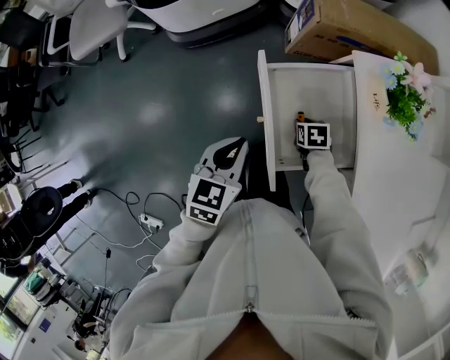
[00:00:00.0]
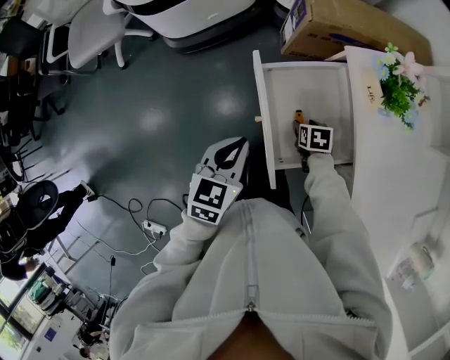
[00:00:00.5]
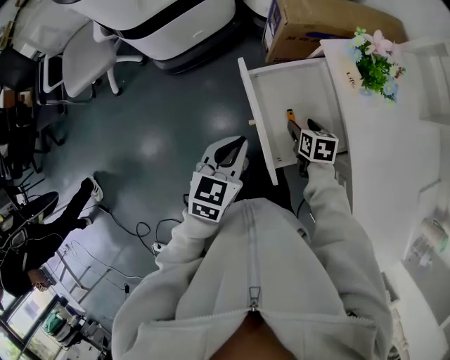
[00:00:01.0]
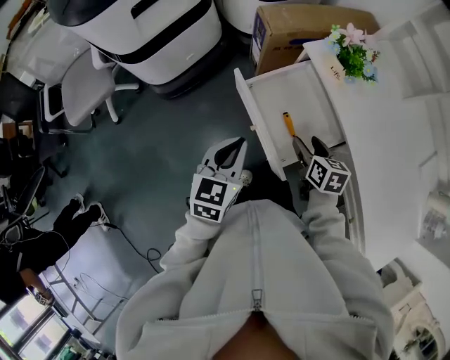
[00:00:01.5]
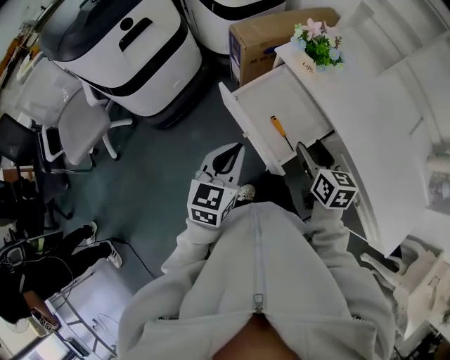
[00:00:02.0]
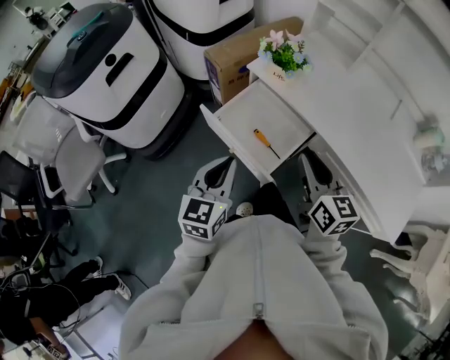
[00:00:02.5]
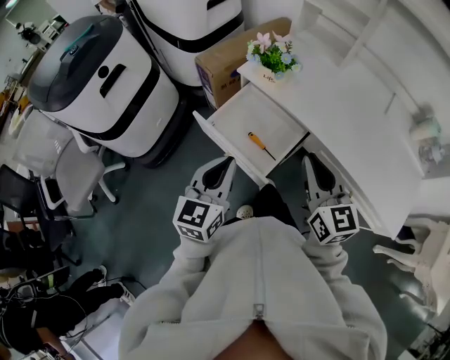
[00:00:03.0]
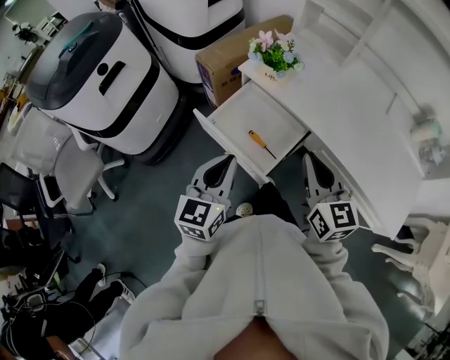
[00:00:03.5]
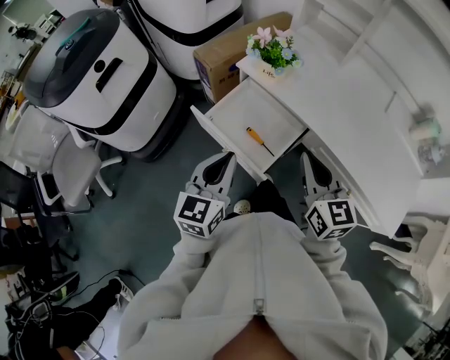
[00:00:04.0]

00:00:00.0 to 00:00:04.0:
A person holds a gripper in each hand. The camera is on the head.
00:00:00.0 to 00:00:02.0: The right gripper travels upward by approximately 30 cm, tips its fingers upward by roughly 40 degrees, and opens its fingers; the left gripper shifts roughly 10 cm upward, and changes its angle by roughly 30 degrees.
00:00:02.0 to 00:00:04.0: The left gripper moves about 5 cm. Meanwhile the right gripper travels upward by approximately 10 cm, turns by some 20 degrees, and closes up.

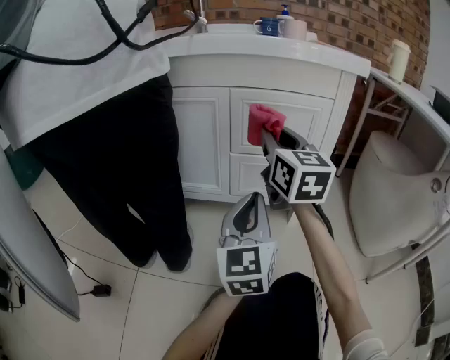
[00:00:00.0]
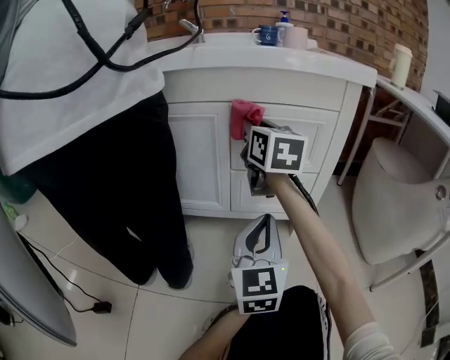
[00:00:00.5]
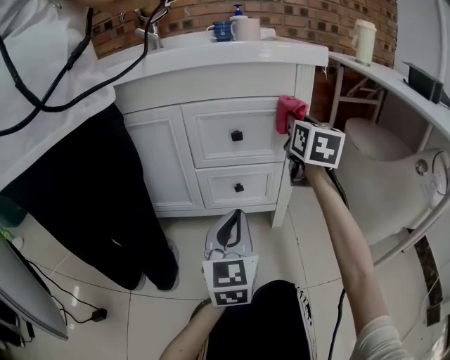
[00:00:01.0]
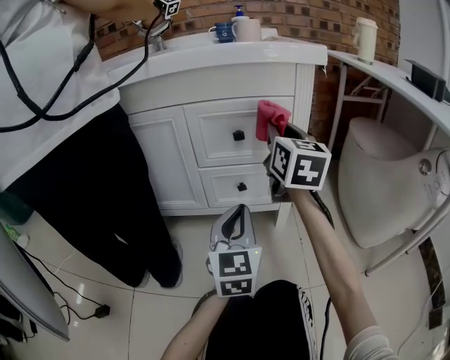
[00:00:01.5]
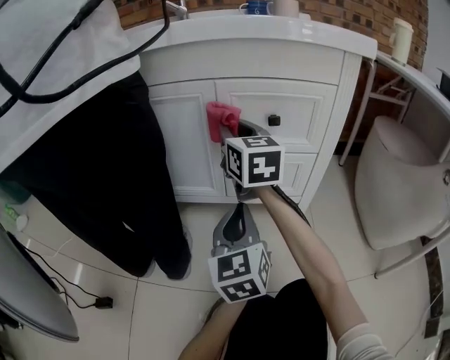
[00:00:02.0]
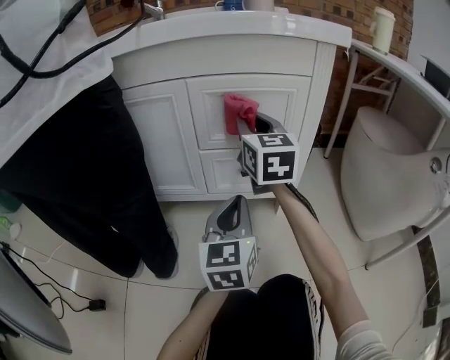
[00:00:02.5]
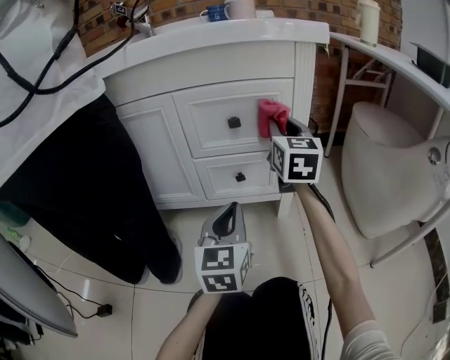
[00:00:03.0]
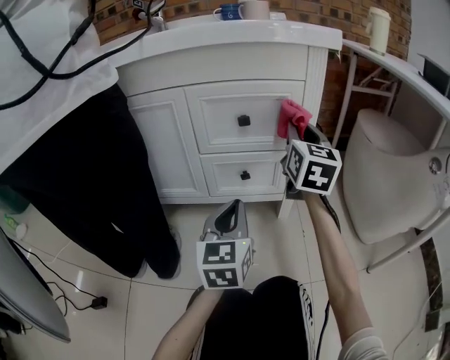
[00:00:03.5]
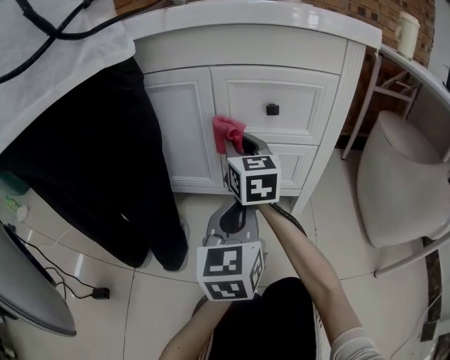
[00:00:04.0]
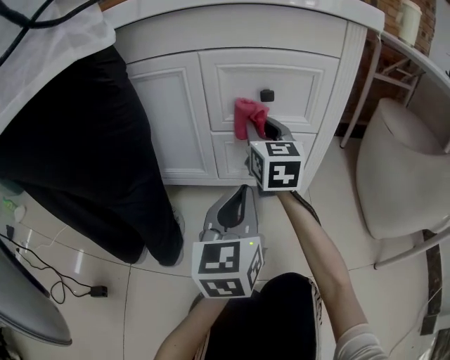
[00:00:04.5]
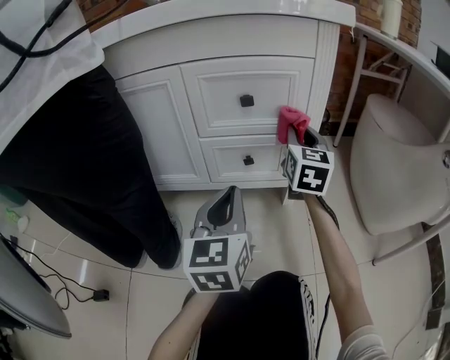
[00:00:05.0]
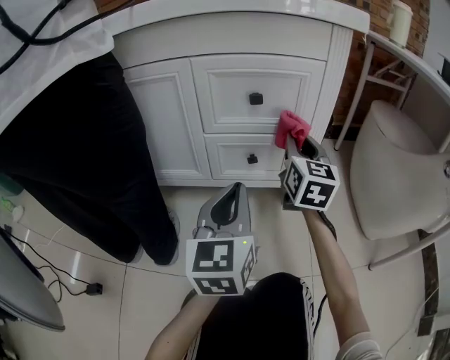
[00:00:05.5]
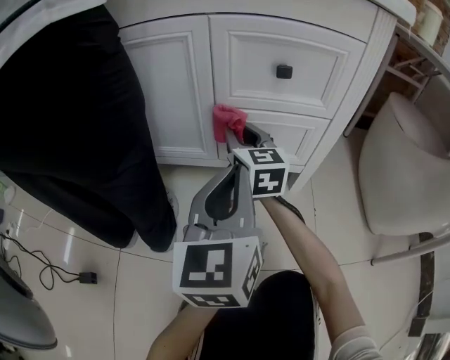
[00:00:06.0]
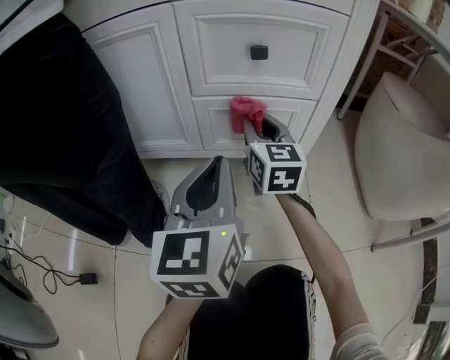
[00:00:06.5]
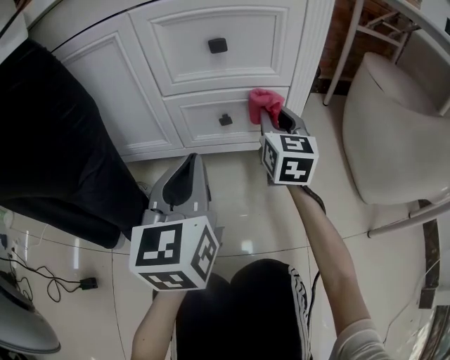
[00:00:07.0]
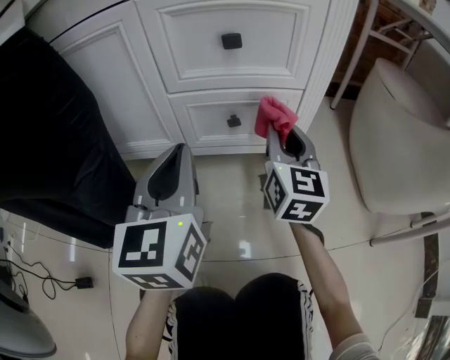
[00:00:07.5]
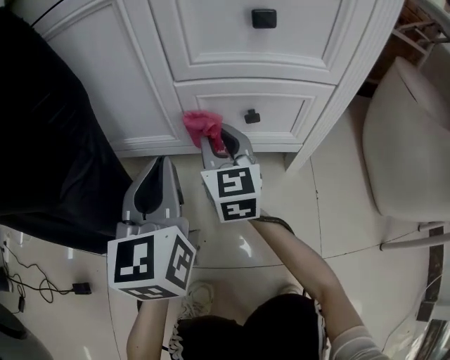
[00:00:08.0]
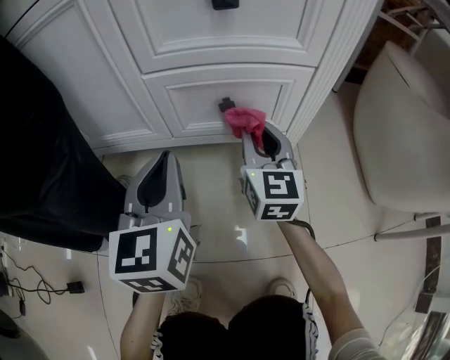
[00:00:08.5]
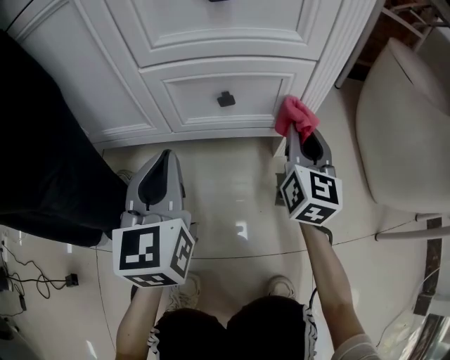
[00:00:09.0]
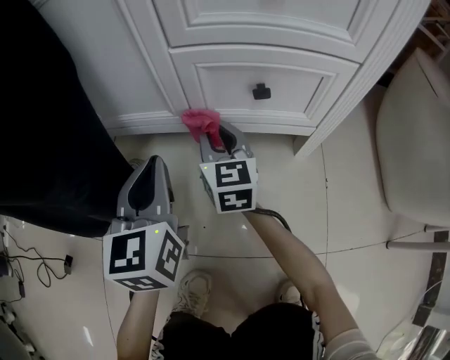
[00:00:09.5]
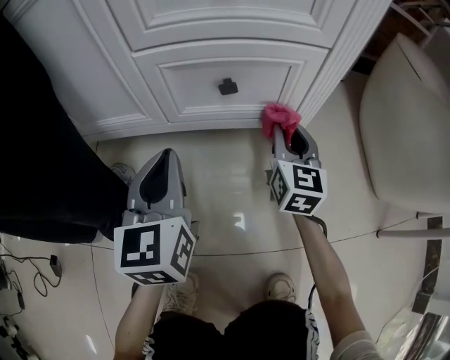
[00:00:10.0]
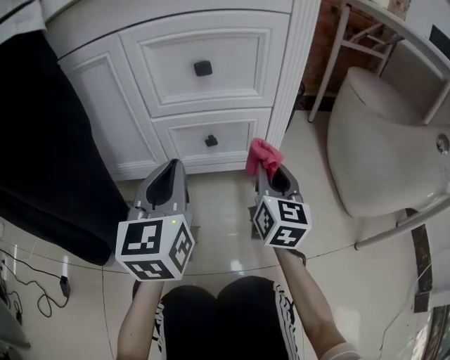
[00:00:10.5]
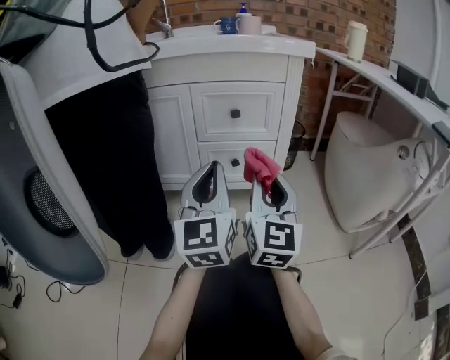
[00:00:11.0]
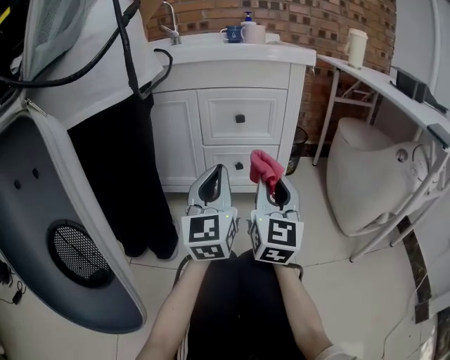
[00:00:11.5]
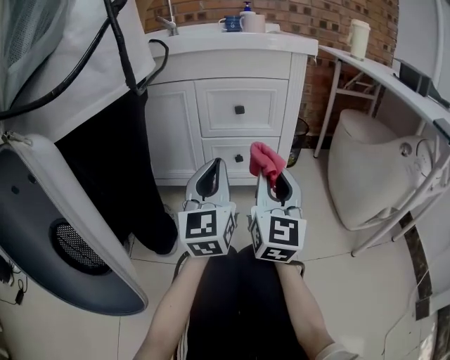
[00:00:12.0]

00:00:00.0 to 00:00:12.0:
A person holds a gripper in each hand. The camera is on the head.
00:00:00.0 to 00:00:02.0: The right gripper swings left and right, approximately 25 cm each way, with 2 reversals, while the left gripper goes about 5 cm downward, and goes to the right and returns, about 5 cm each way.
00:00:02.0 to 00:00:04.0: The right gripper heads downward, covering some 5 cm, and travels to the right and back again, approximately 25 cm each way.
00:00:04.0 to 00:00:06.0: The right gripper is displaced downward by approximately 10 cm, and moves some 25 cm to the right and comes back.
00:00:06.0 to 00:00:08.0: The left gripper is displaced downward, forward and to the left by some 15 cm. Meanwhile the right gripper goes about 10 cm downward, and reaches some 20 cm to the right, then returns.
00:00:08.0 to 00:00:10.0: The right gripper goes left and right, roughly 25 cm each way, reversing 2 times, and swivels approximately 20 degrees. The left gripper shifts roughly 10 cm downward.
00:00:10.0 to 00:00:12.0: Both grippers move upward and backward, about 35 cm. The right gripper rotates about 30 degrees, while the left gripper swivels roughly 30 degrees.

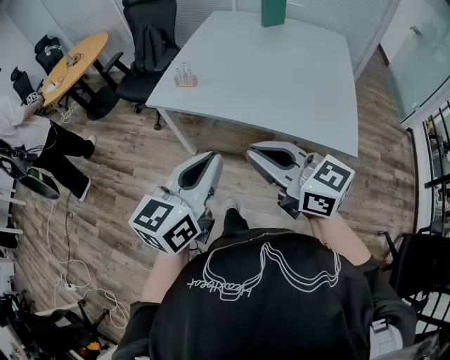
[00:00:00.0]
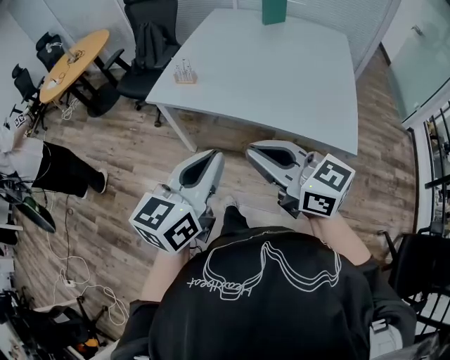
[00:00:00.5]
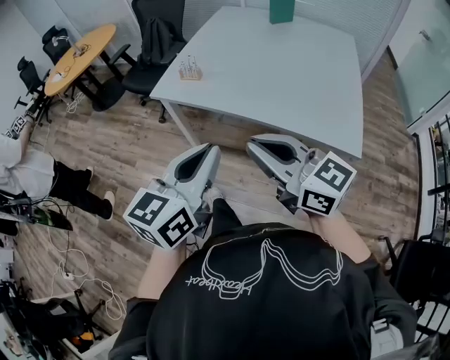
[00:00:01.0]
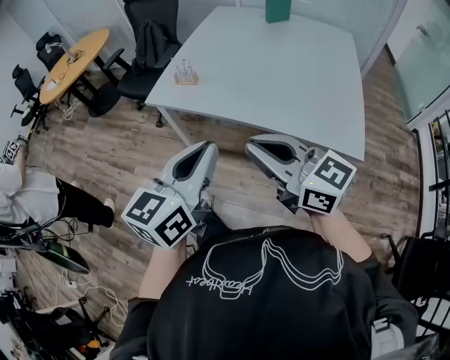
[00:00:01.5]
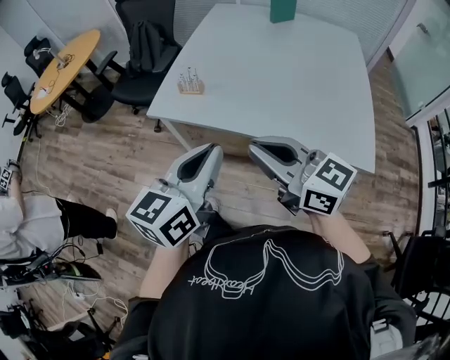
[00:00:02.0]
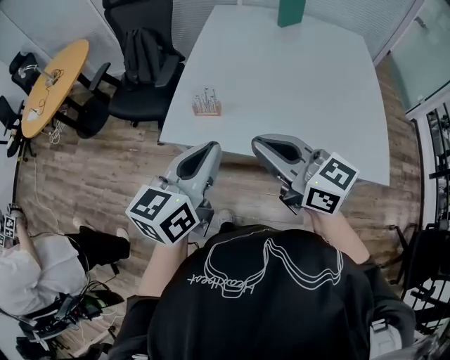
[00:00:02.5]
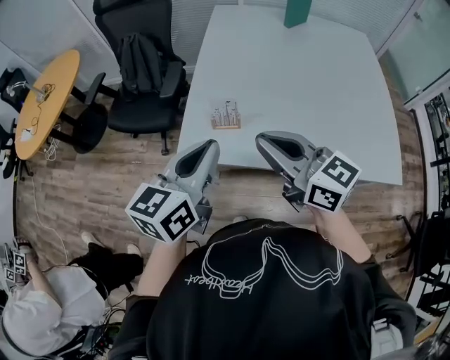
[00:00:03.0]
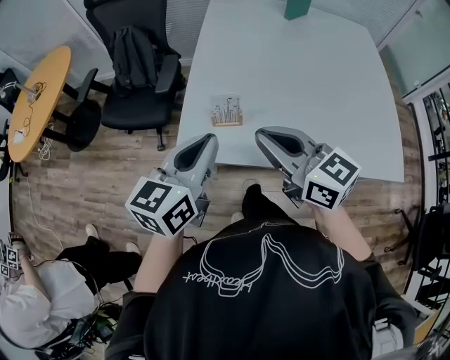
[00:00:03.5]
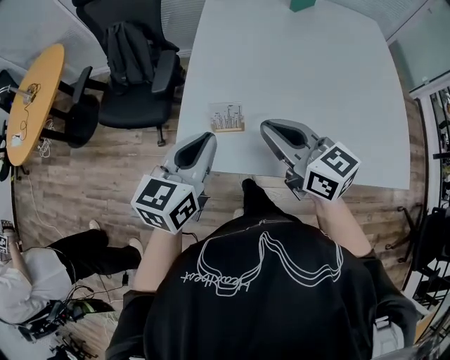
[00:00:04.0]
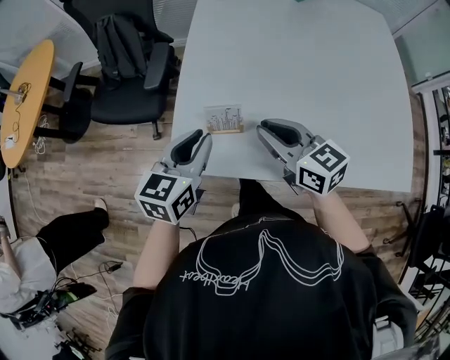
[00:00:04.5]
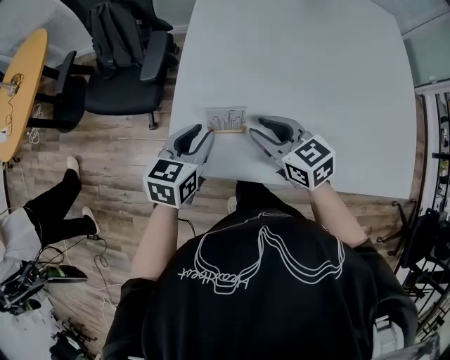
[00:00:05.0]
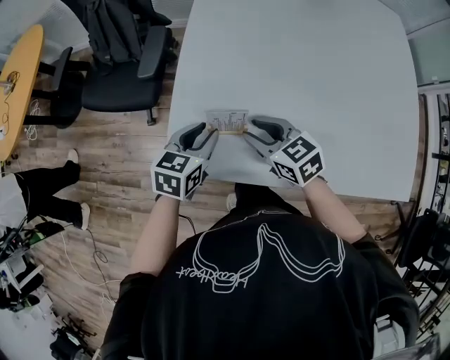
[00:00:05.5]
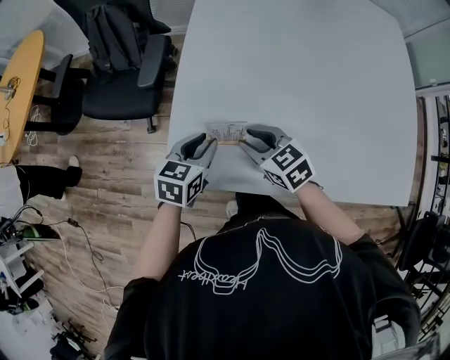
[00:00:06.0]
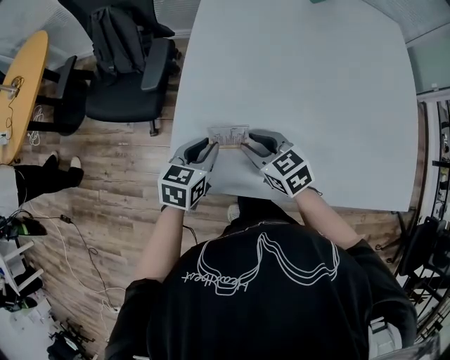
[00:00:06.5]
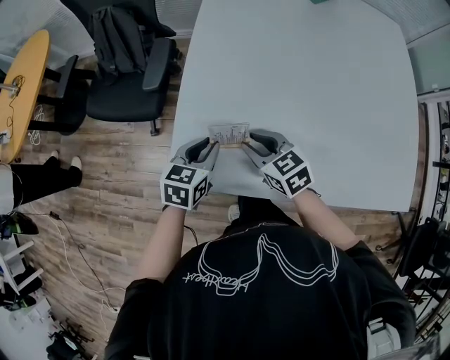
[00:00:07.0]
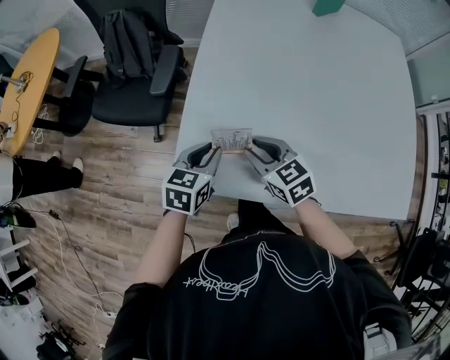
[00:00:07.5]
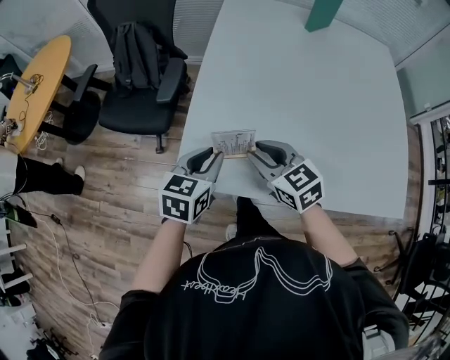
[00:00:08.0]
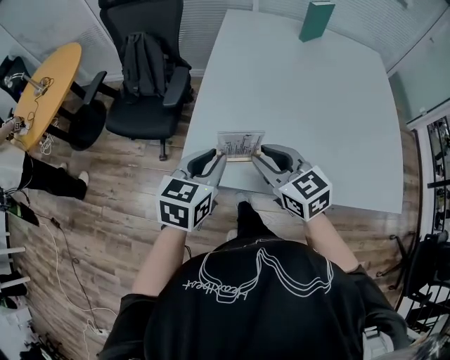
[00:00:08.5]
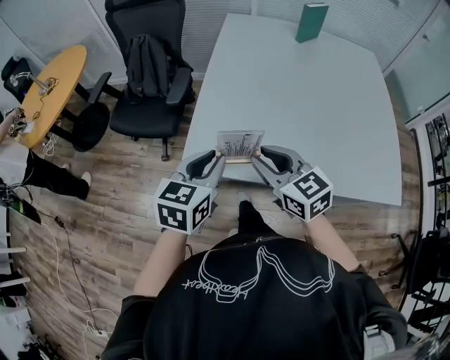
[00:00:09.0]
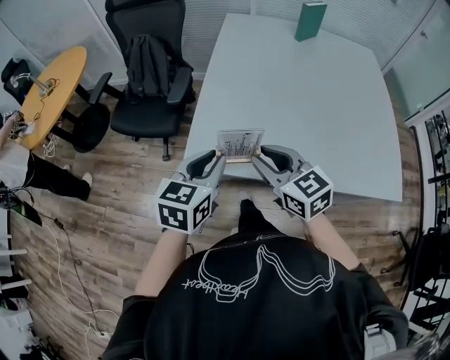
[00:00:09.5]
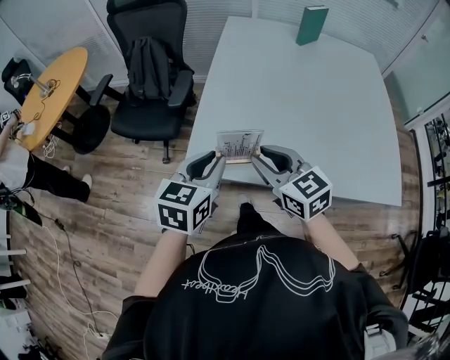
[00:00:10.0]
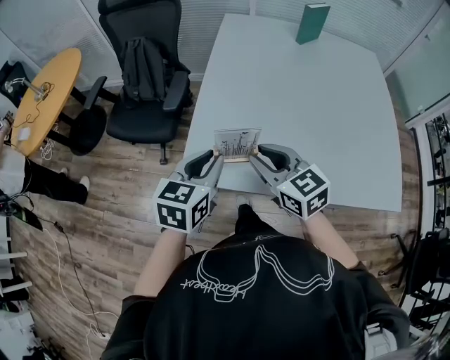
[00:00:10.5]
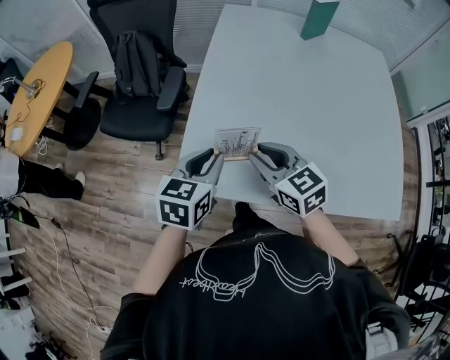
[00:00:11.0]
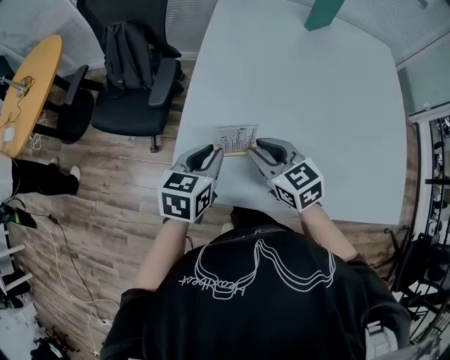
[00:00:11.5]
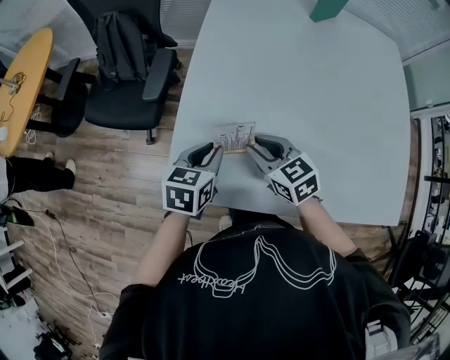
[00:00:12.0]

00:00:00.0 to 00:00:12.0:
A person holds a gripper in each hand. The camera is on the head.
00:00:00.0 to 00:00:02.0: Both grippers travel together forward, approximately 15 cm.
00:00:02.0 to 00:00:04.0: The left gripper moves forward and to the left, about 35 cm; the right gripper heads forward, covering some 30 cm, and turns by roughly 20 degrees.
00:00:04.0 to 00:00:06.0: The left gripper shifts approximately 20 cm downward and forward, swivels some 20 degrees, and opens up. The right gripper heads downward, covering approximately 20 cm, turns by approximately 30 degrees, and opens.
00:00:06.0 to 00:00:08.0: Both grippers move upward, roughly 10 cm.
00:00:08.0 to 00:00:10.0: The grippers both shift backward and upward by roughly 15 cm.
00:00:10.0 to 00:00:12.0: The grippers both shift forward and downward by some 20 cm.
